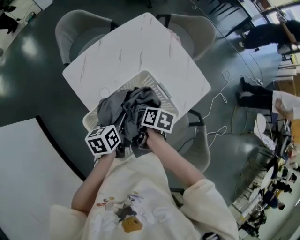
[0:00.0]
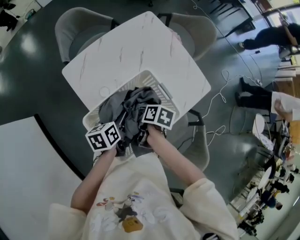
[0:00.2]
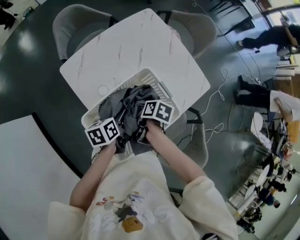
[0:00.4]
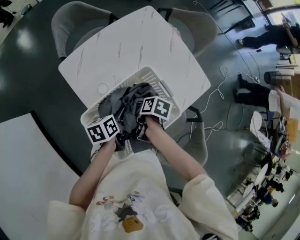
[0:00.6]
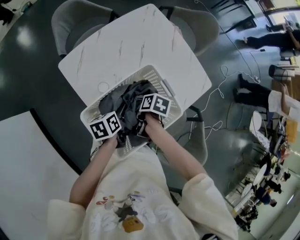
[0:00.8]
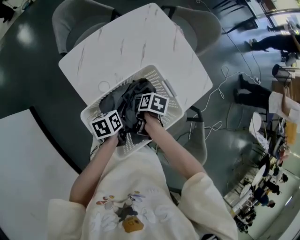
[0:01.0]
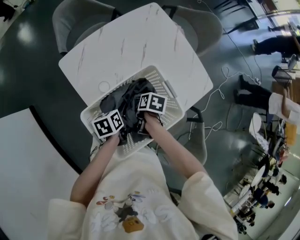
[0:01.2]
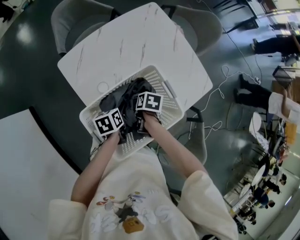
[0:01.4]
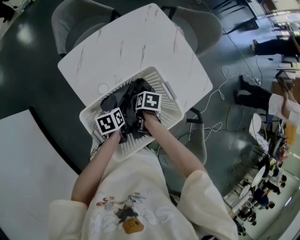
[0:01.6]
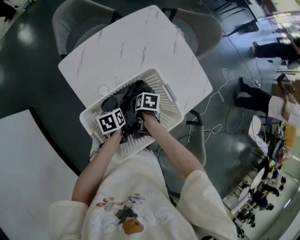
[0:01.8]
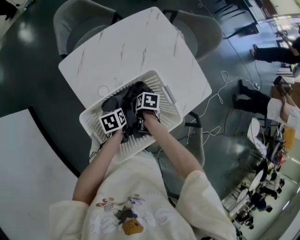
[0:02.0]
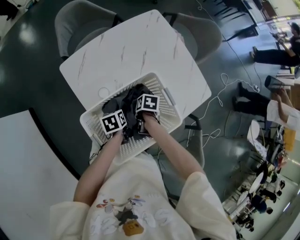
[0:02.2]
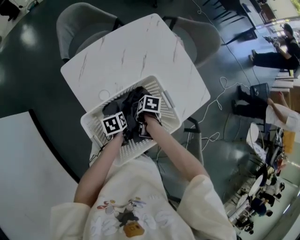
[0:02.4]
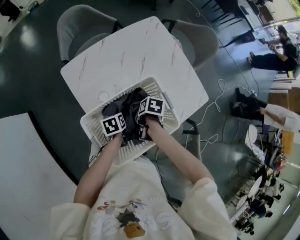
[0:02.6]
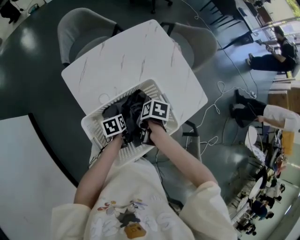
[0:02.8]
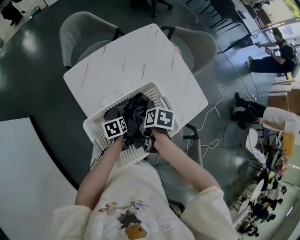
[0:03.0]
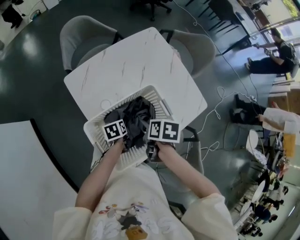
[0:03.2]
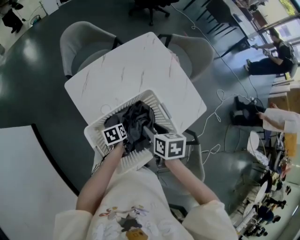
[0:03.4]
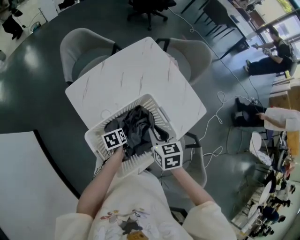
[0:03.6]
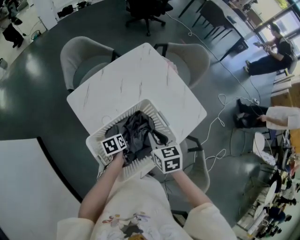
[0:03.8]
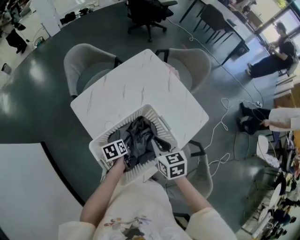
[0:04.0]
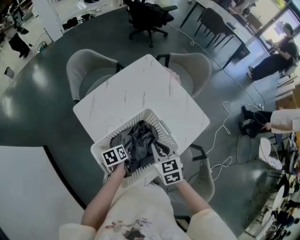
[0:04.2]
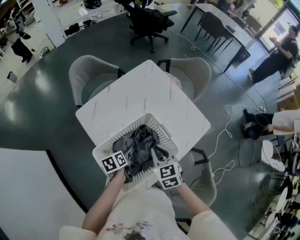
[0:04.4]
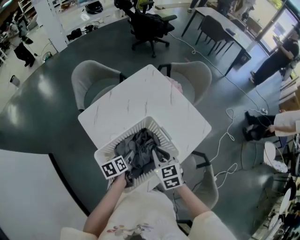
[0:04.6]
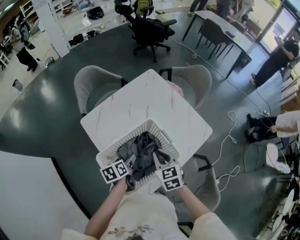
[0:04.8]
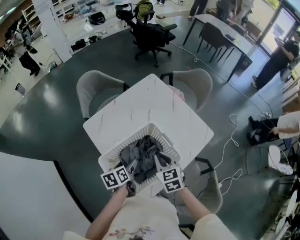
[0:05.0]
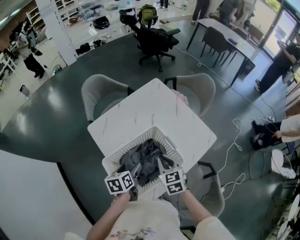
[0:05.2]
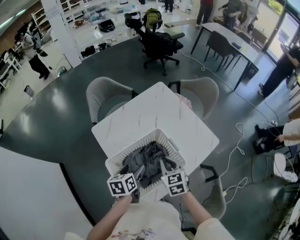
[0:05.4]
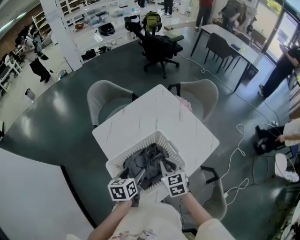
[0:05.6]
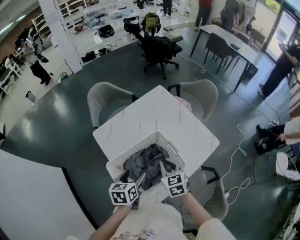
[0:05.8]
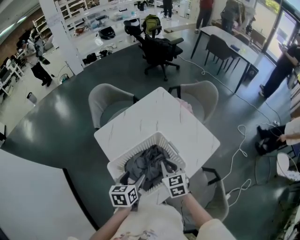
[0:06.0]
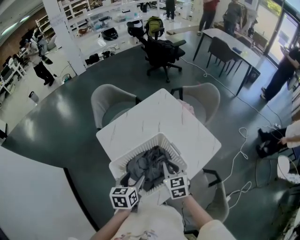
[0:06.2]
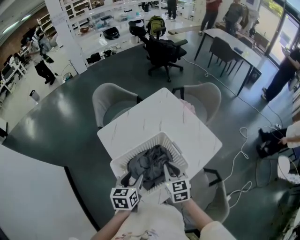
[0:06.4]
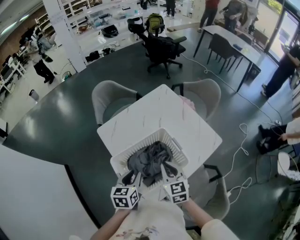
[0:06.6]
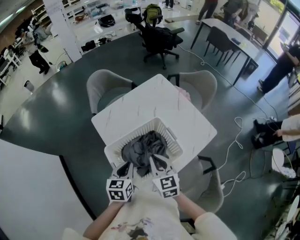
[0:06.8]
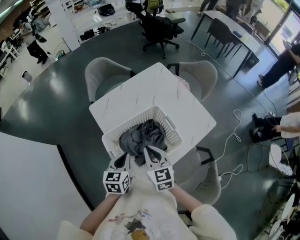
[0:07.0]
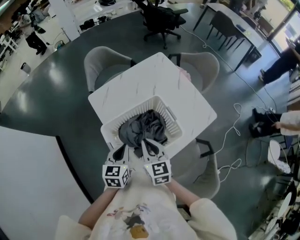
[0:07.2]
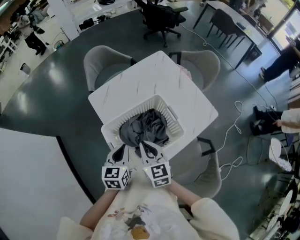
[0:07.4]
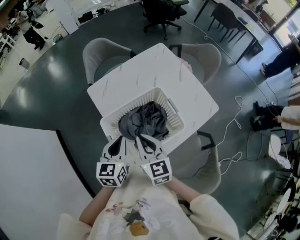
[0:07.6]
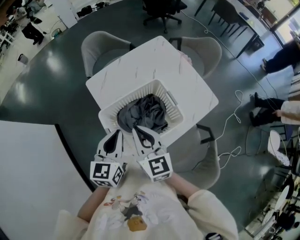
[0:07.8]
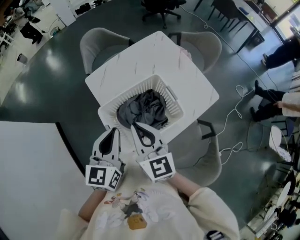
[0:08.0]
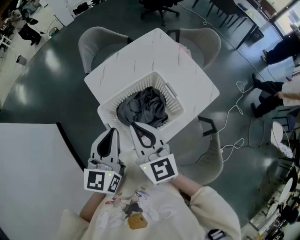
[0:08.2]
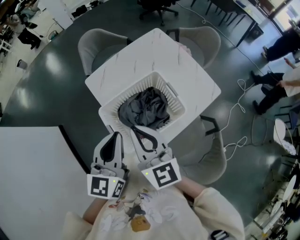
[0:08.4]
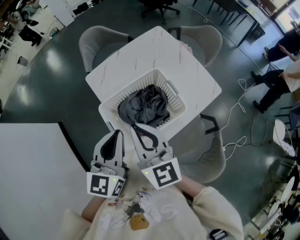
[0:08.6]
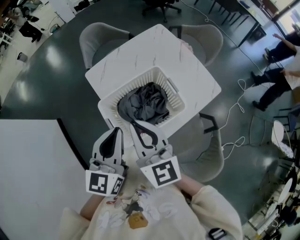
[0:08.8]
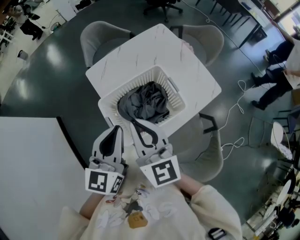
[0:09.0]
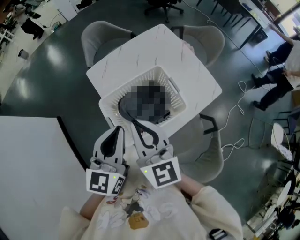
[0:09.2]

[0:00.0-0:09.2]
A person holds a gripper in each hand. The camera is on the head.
0.0 to 1.6 s: The grippers both shift downward by some 15 cm. The right gripper rotates some 20 degrees.
1.6 to 3.0 s: The right gripper shifts roughly 10 cm upward, and opens its fingers.
3.0 to 4.6 s: Both grippers move upward, about 10 cm. The right gripper points its fingers roughly 30 degrees further upward, and closes its fingers.
4.6 to 6.2 s: The left gripper heads upward and backward, covering some 15 cm, and swivels roughly 30 degrees.
6.2 to 7.6 s: The right gripper is displaced to the left, backward and upward by approximately 15 cm. The left gripper shifts by roughly 5 cm, and closes its fingers.
7.6 to 9.2 s: Both grippers move upward, approximately 15 cm.

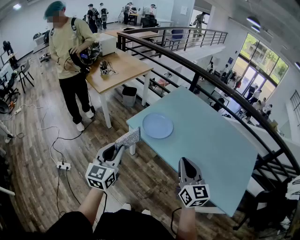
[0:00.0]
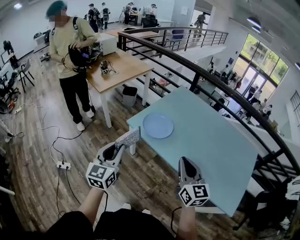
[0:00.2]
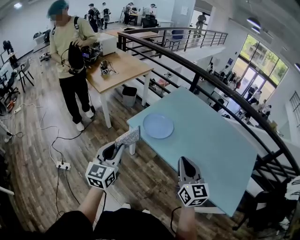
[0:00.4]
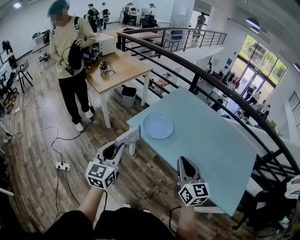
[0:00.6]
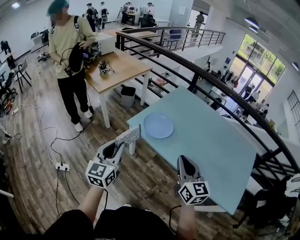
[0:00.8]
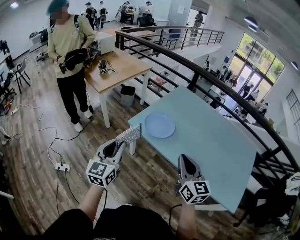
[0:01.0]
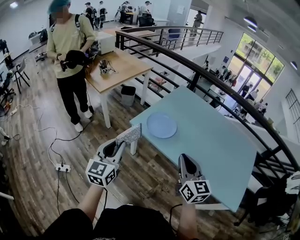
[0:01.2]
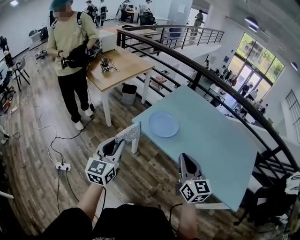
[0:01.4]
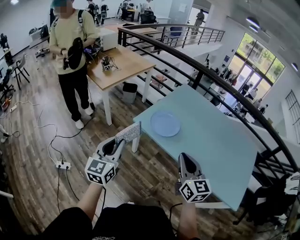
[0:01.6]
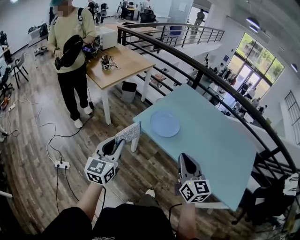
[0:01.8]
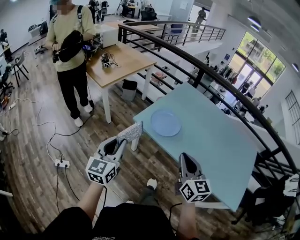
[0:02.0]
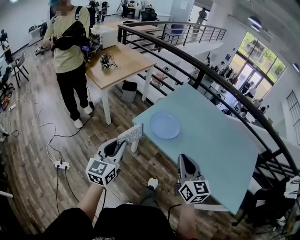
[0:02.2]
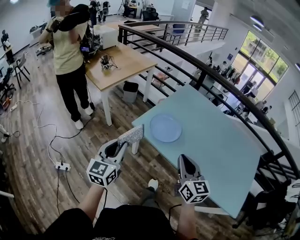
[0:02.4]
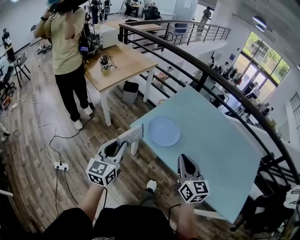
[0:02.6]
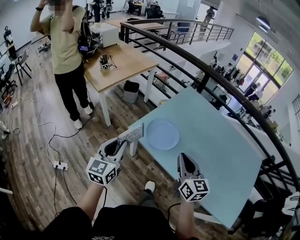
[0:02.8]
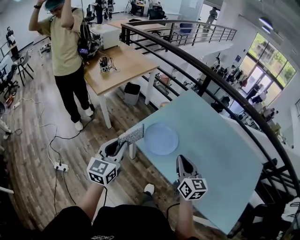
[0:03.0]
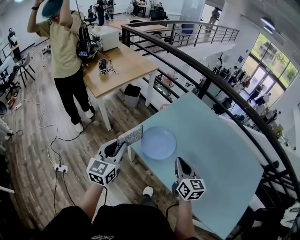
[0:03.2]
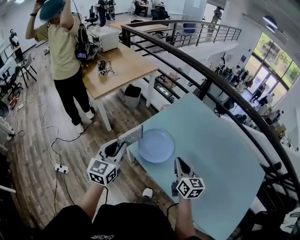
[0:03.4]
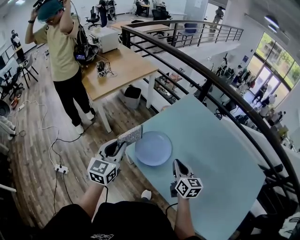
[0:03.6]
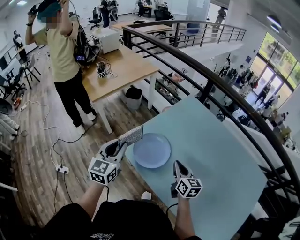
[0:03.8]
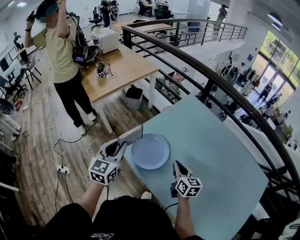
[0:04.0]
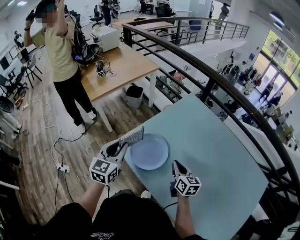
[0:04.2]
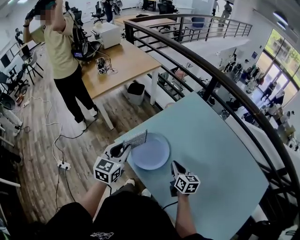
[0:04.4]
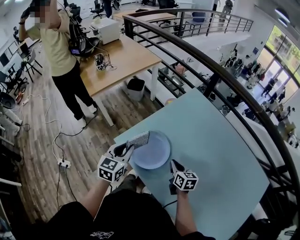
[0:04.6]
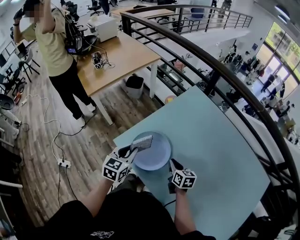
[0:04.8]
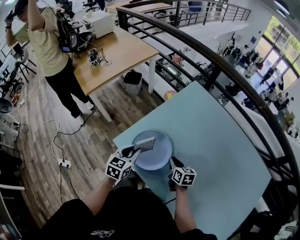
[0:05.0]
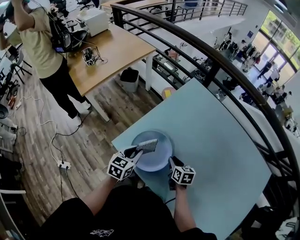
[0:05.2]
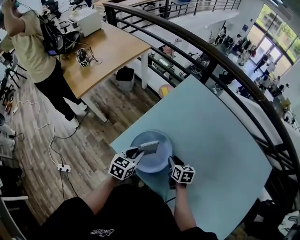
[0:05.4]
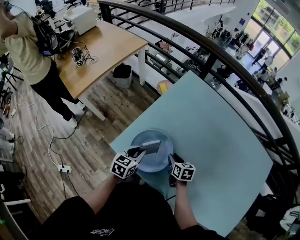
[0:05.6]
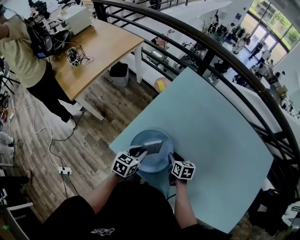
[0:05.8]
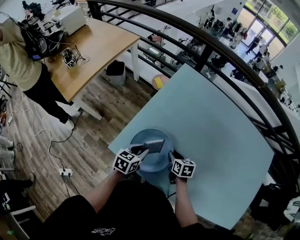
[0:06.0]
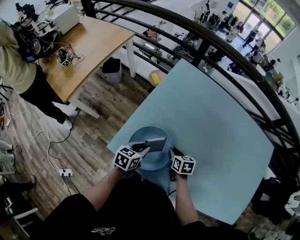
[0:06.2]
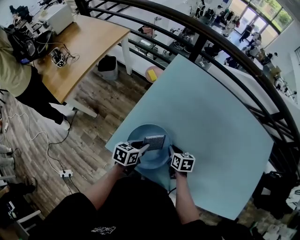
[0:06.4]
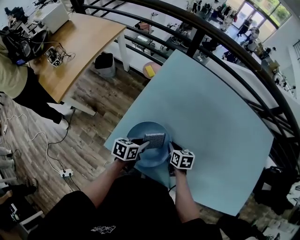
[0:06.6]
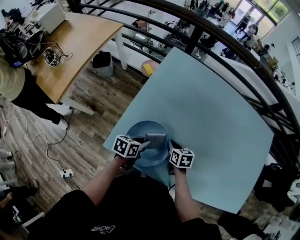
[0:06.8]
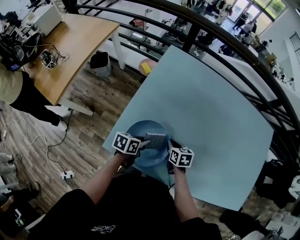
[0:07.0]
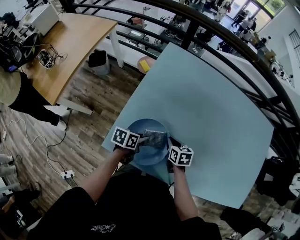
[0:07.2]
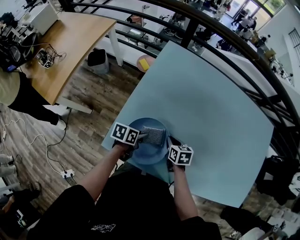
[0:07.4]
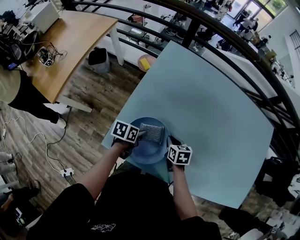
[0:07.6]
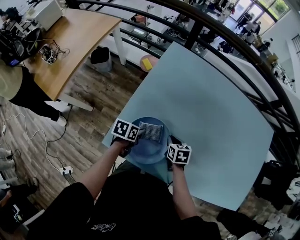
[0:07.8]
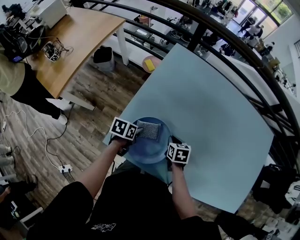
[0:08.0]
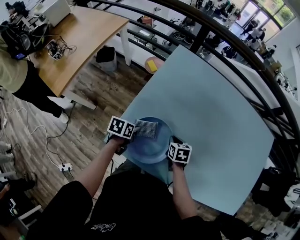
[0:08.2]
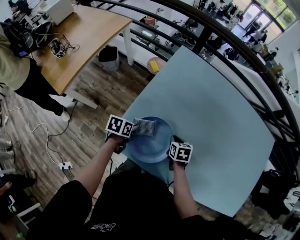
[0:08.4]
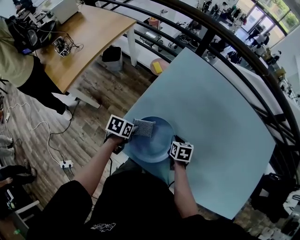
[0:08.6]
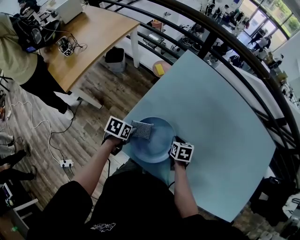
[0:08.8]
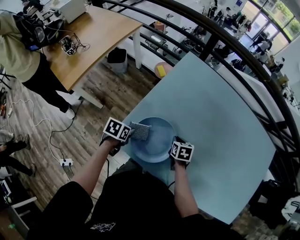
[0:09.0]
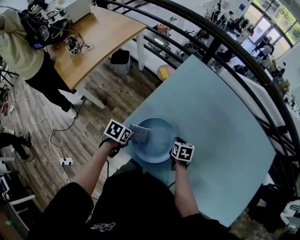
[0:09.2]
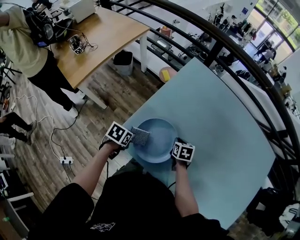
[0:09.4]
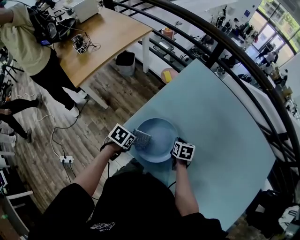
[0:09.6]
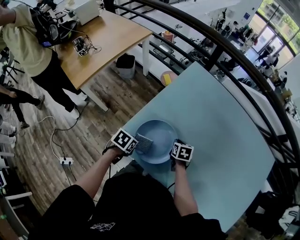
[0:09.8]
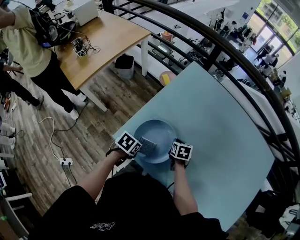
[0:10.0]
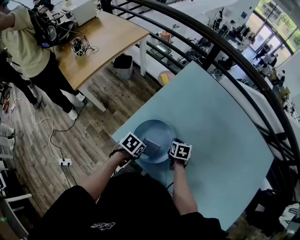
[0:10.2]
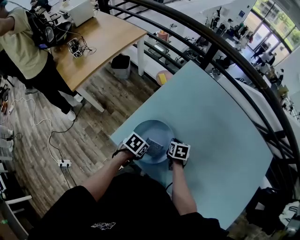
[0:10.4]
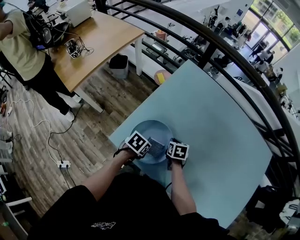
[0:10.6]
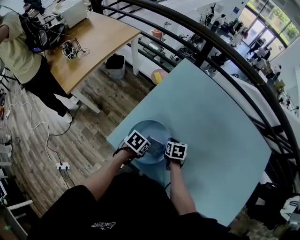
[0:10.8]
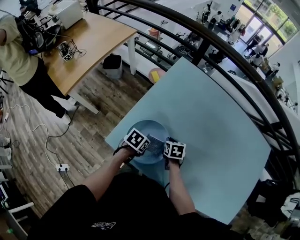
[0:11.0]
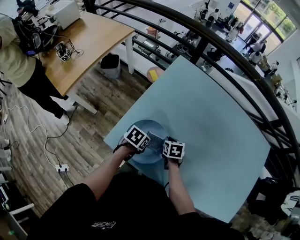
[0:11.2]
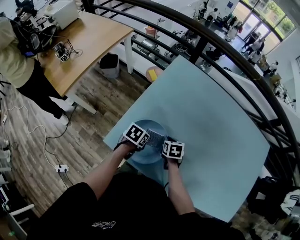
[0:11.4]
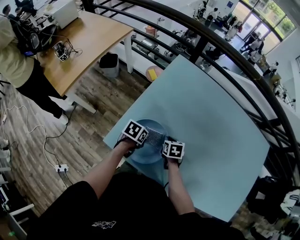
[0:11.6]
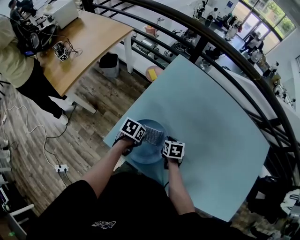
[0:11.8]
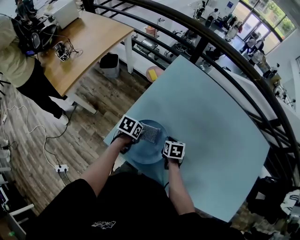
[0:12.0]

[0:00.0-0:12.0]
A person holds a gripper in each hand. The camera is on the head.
0.0 to 1.6 s: Both grippers travel together to the left, roughly 10 cm.
1.6 to 3.0 s: The right gripper heads forward, covering approximately 20 cm, while the left gripper is displaced forward and to the right by approximately 20 cm.
3.0 to 4.4 s: The right gripper is displaced downward, forward and to the right by about 25 cm, and rotates approximately 20 degrees; the left gripper travels to the right, forward and downward by about 20 cm.
4.4 to 6.0 s: The grippers both shift downward and forward by some 20 cm. The right gripper rotates about 30 degrees, and opens, while the left gripper rotates some 40 degrees.
6.0 to 7.6 s: The left gripper shifts about 5 cm downward, and turns by roughly 30 degrees.
7.6 to 9.0 s: The left gripper is displaced to the left and backward by approximately 10 cm.
9.0 to 10.4 s: The left gripper moves to the right, about 10 cm.
10.4 to 12.0 s: The left gripper goes about 5 cm forward.

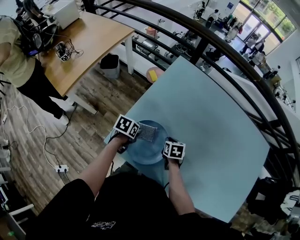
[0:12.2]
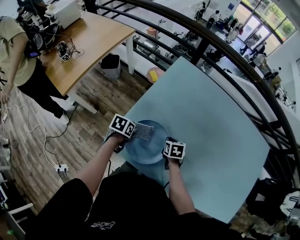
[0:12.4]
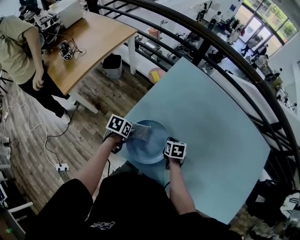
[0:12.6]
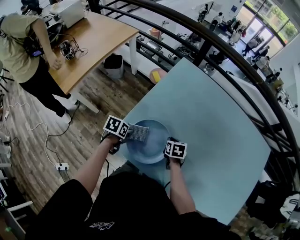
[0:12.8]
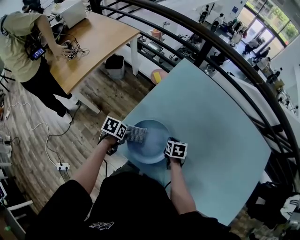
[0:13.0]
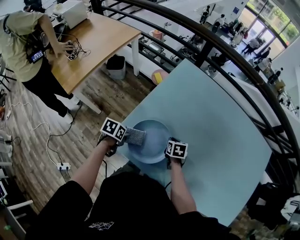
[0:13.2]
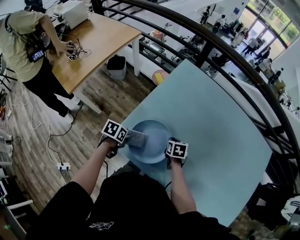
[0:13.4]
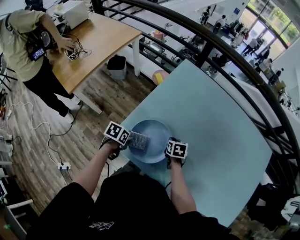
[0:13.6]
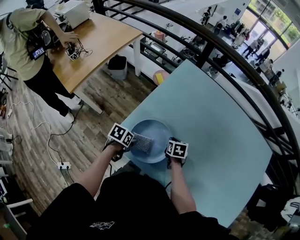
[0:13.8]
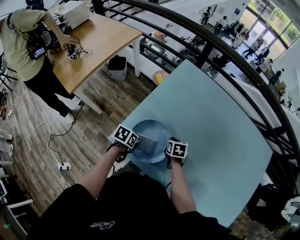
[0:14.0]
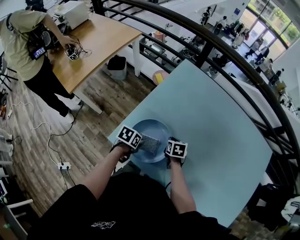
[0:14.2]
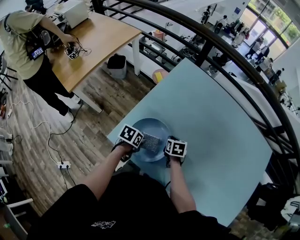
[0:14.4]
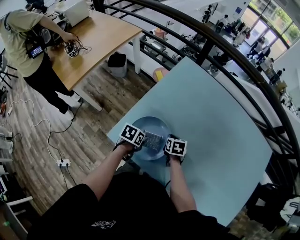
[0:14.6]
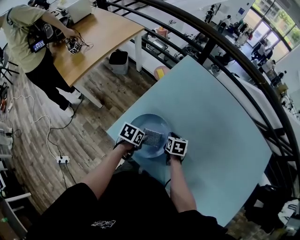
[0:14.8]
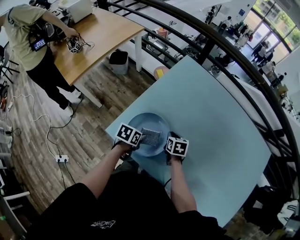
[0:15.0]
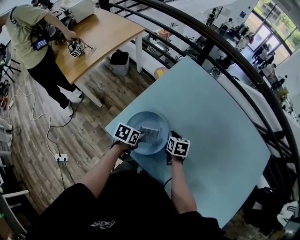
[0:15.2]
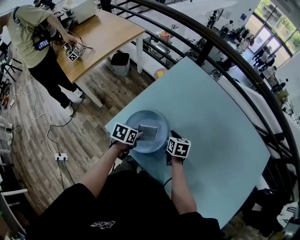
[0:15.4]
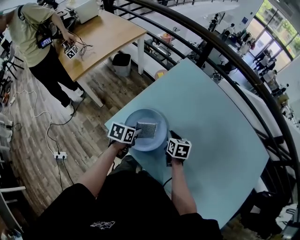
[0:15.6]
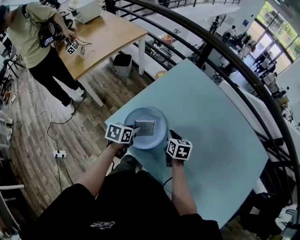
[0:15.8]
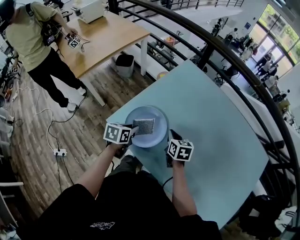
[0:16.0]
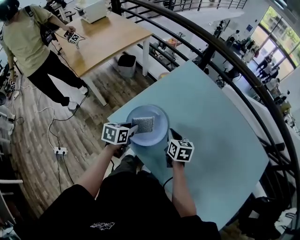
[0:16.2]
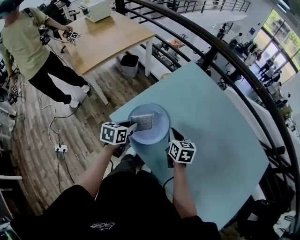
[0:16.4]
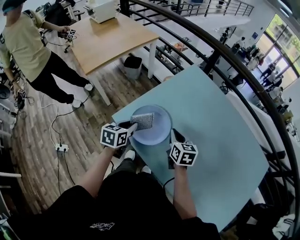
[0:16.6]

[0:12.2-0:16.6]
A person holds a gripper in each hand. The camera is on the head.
12.2 to 13.6 s: The left gripper moves backward, approximately 10 cm.
13.6 to 15.2 s: The left gripper goes some 10 cm to the right.
15.2 to 16.6 s: Both grippers travel together upward and backward, approximately 10 cm. The left gripper turns by roughly 30 degrees. Meanwhile the right gripper turns by about 20 degrees.
